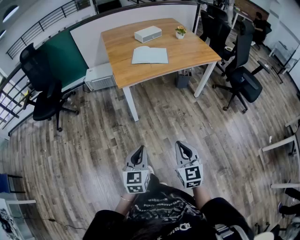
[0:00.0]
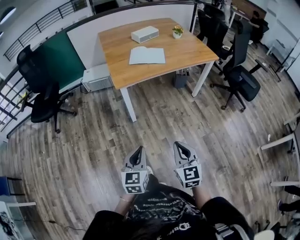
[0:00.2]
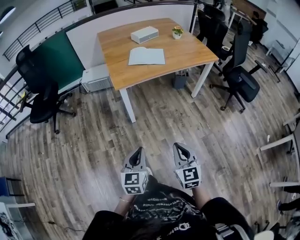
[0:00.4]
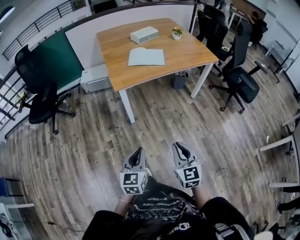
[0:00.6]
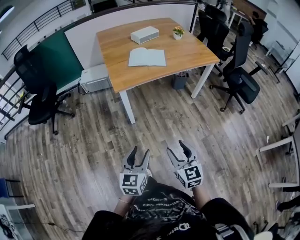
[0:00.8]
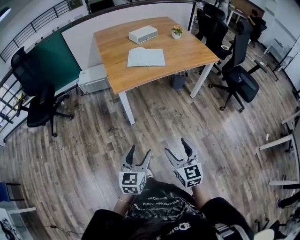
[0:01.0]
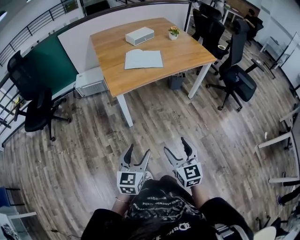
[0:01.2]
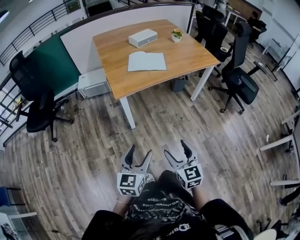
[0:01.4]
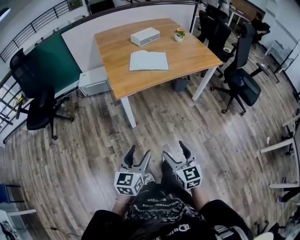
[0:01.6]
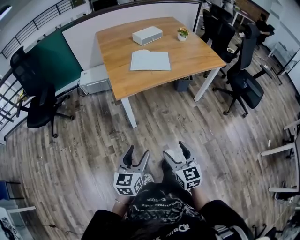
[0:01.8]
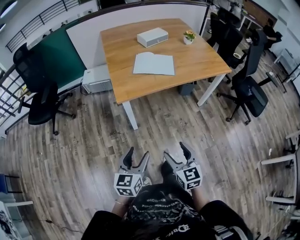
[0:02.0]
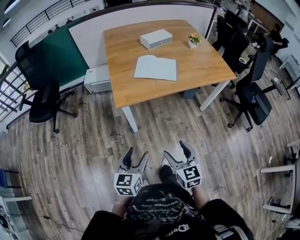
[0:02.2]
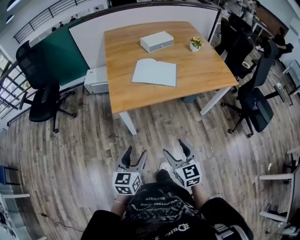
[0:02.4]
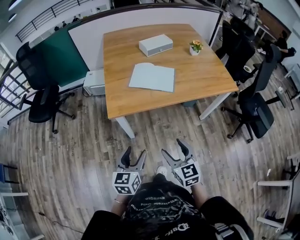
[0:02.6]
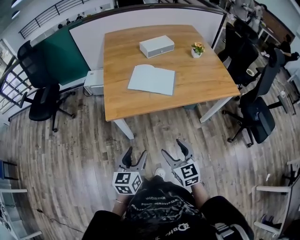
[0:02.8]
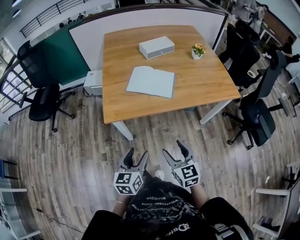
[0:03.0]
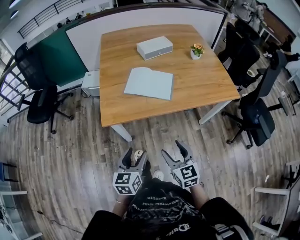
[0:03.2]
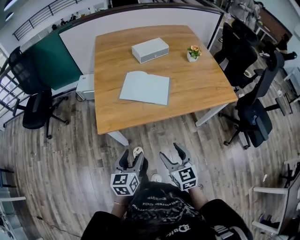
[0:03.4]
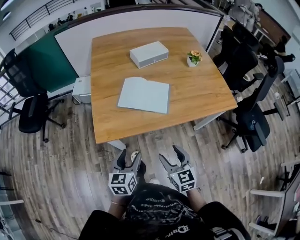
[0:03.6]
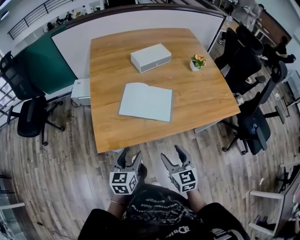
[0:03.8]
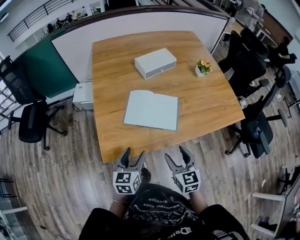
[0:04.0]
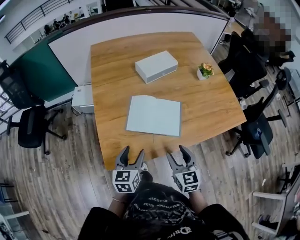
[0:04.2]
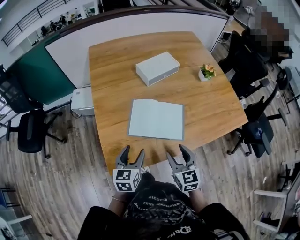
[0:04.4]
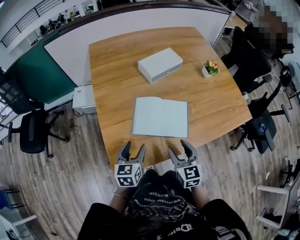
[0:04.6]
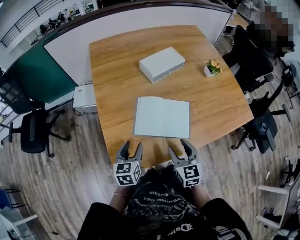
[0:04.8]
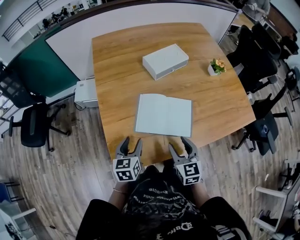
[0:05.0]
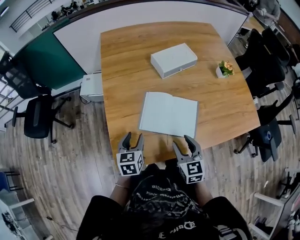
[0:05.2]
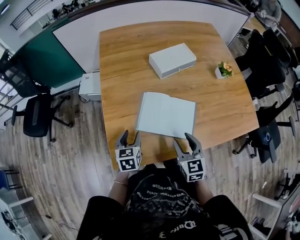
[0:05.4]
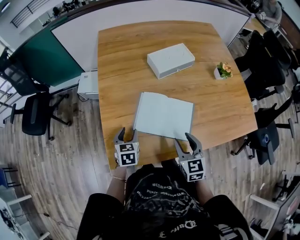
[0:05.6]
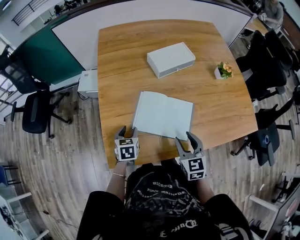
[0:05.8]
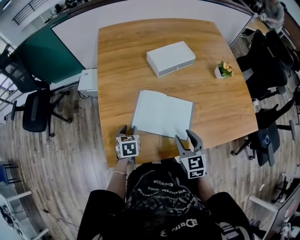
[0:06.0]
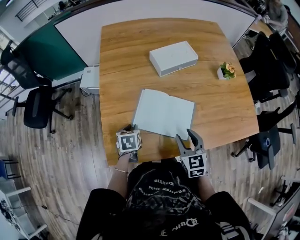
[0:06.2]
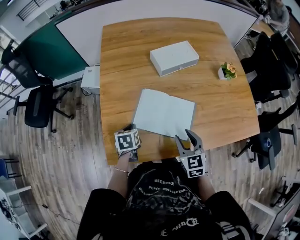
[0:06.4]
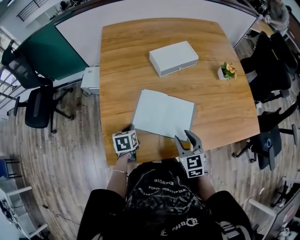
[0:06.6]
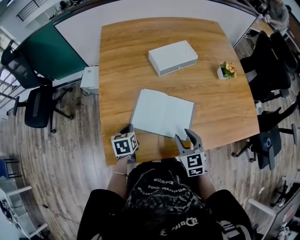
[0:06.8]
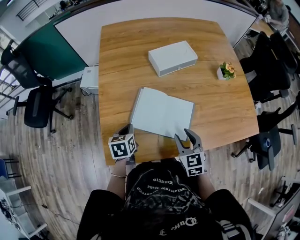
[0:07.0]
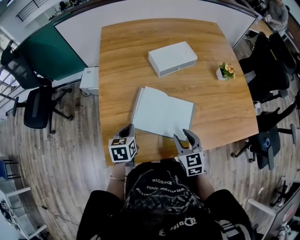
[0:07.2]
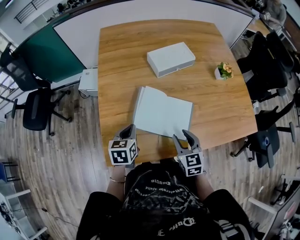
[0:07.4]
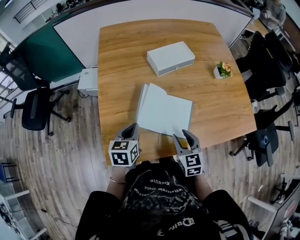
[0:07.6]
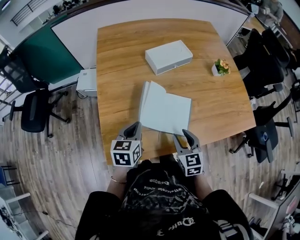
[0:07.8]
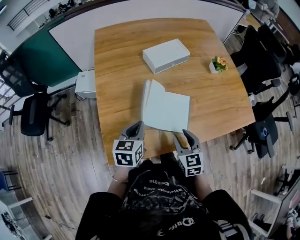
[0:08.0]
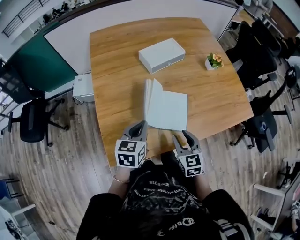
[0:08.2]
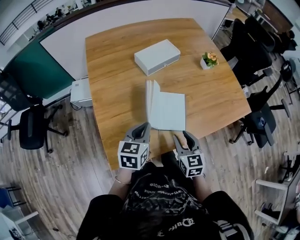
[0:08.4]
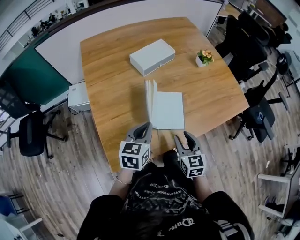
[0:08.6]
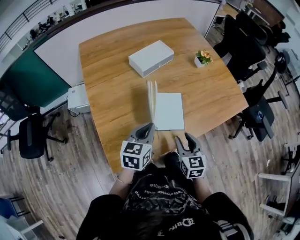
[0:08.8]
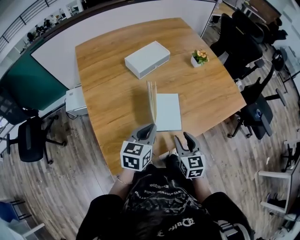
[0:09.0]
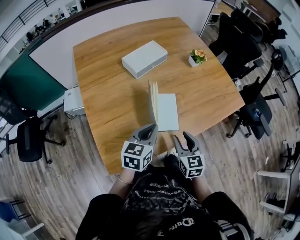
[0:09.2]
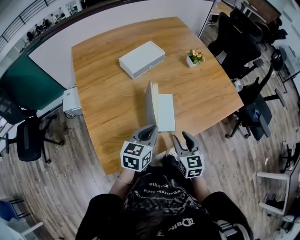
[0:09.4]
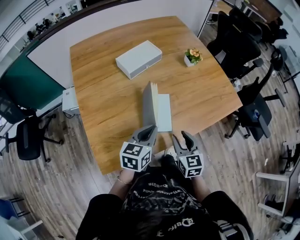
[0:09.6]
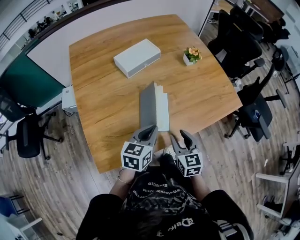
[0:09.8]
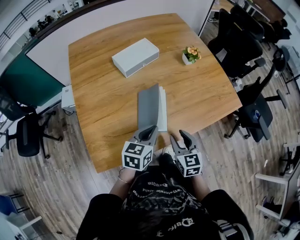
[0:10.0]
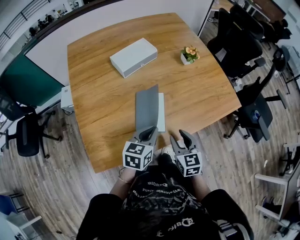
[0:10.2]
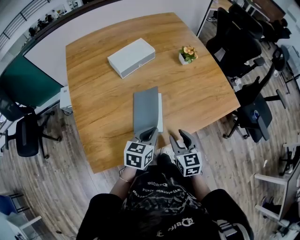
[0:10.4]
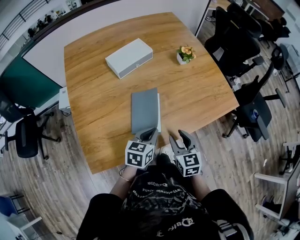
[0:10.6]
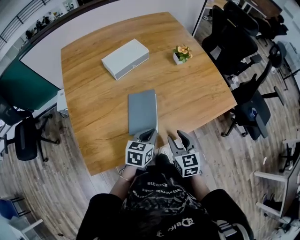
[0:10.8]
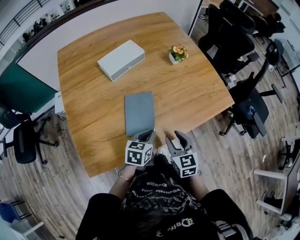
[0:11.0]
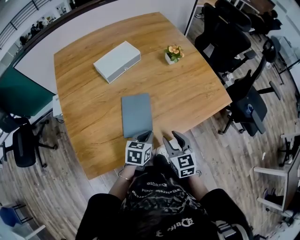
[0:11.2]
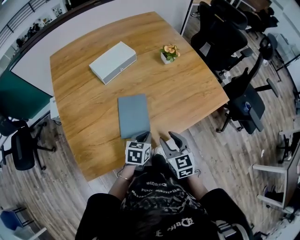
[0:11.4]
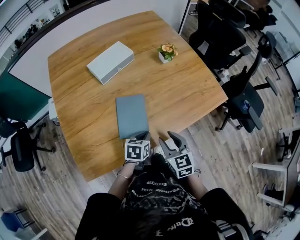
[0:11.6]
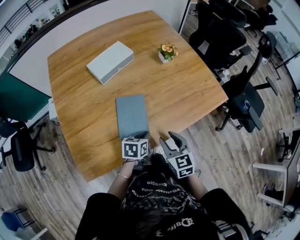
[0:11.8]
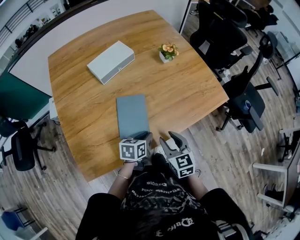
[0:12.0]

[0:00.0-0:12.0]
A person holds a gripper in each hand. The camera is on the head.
0:00.0 to 0:01.6: The left gripper moves forward, roughly 10 cm, and opens up. The right gripper moves forward and to the left, some 10 cm, and opens up.
0:01.6 to 0:03.0: The two grippers go some 30 cm forward and to the right.
0:03.0 to 0:04.4: Both grippers travel together forward, roughly 30 cm.
0:04.4 to 0:06.0: The right gripper is displaced forward by some 10 cm. Meanwhile the left gripper goes about 15 cm forward and downward, turns by about 30 degrees, and closes.
0:06.0 to 0:07.6: The left gripper is displaced upward by roughly 10 cm, and closes up.
0:07.6 to 0:09.0: The left gripper goes approximately 10 cm to the right, and rotates roughly 30 degrees, while the right gripper moves backward, about 5 cm, and changes its angle by roughly 20 degrees.
0:09.0 to 0:10.4: The left gripper moves to the right and downward, roughly 15 cm. Meanwhile the right gripper travels to the right by about 10 cm.
0:10.4 to 0:12.0: The left gripper heads downward, covering roughly 10 cm.

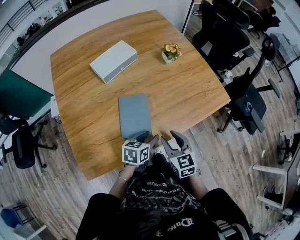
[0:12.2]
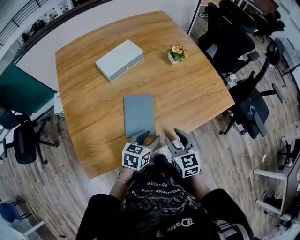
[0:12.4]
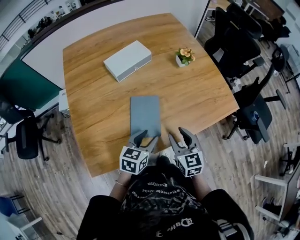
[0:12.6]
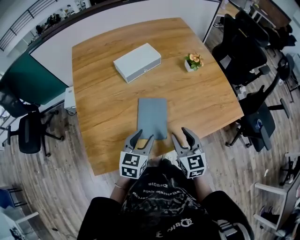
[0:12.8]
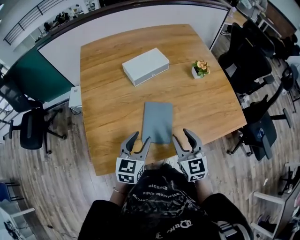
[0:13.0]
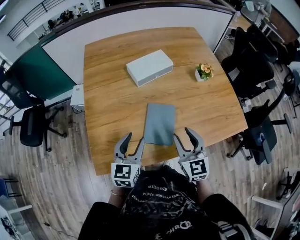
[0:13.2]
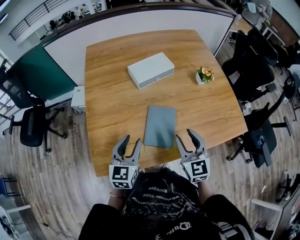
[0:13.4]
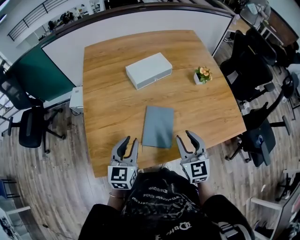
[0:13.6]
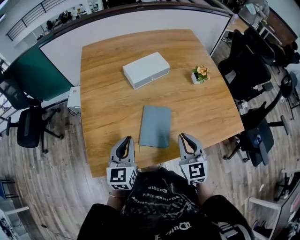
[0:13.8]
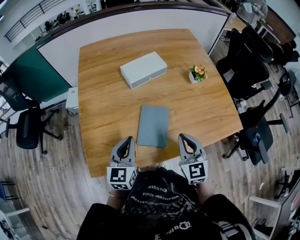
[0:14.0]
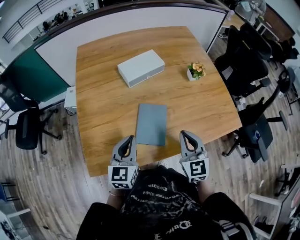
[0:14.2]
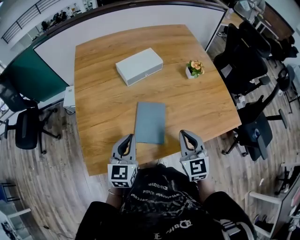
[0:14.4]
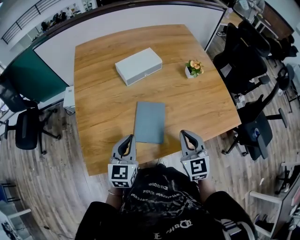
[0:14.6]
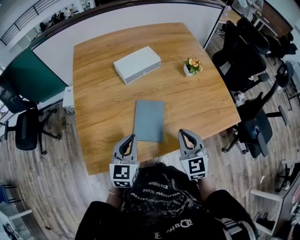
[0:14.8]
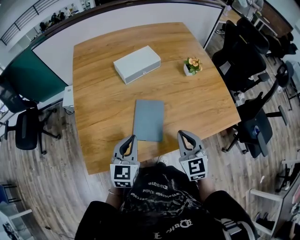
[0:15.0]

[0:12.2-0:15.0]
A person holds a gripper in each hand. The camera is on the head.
0:12.2 to 0:13.6: The right gripper goes approximately 10 cm upward, and turns by roughly 20 degrees, while the left gripper shifts by roughly 25 cm, and swivels about 50 degrees.
0:13.6 to 0:15.0: The left gripper is displaced to the right by about 5 cm, and closes, while the right gripper closes.

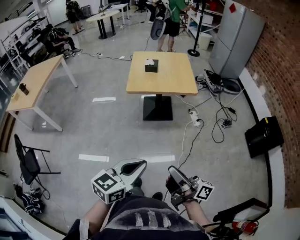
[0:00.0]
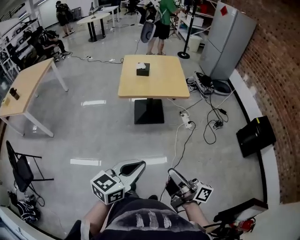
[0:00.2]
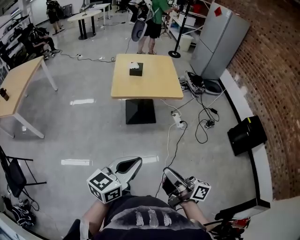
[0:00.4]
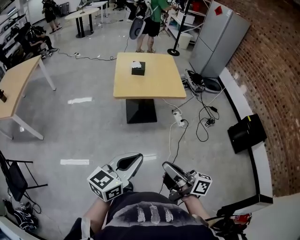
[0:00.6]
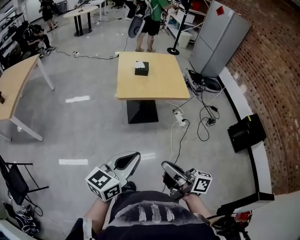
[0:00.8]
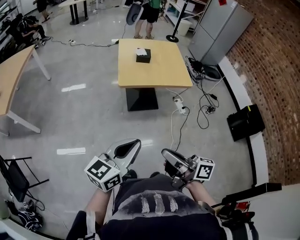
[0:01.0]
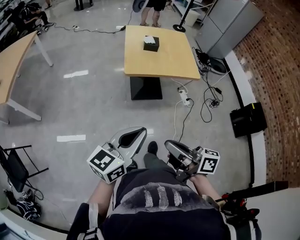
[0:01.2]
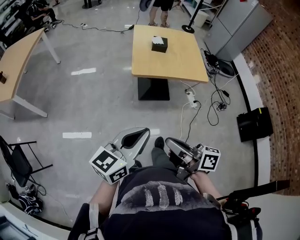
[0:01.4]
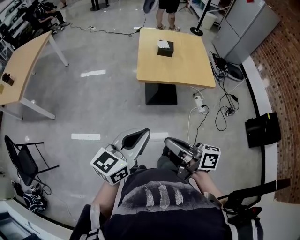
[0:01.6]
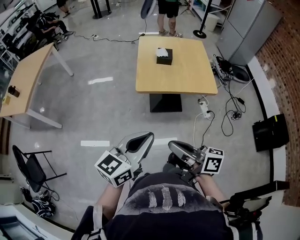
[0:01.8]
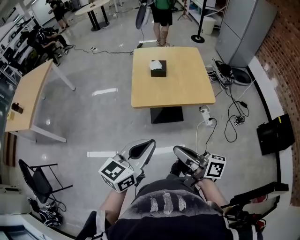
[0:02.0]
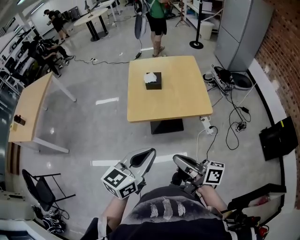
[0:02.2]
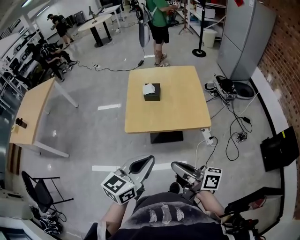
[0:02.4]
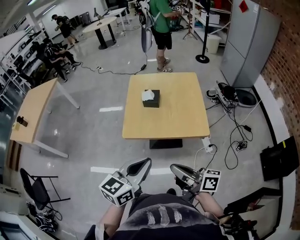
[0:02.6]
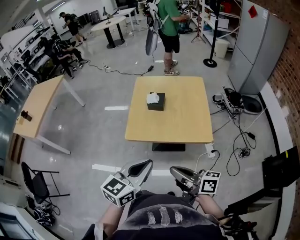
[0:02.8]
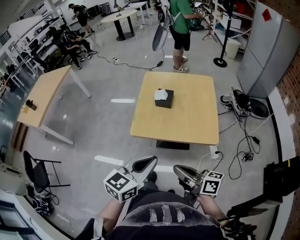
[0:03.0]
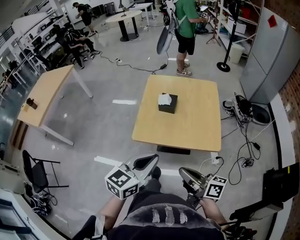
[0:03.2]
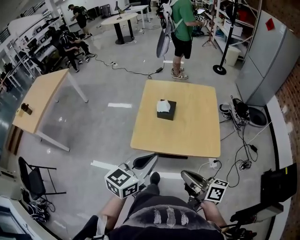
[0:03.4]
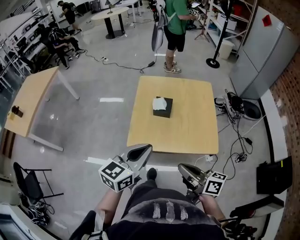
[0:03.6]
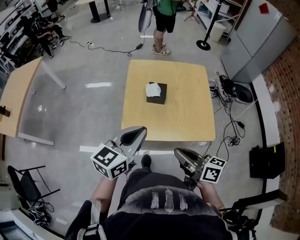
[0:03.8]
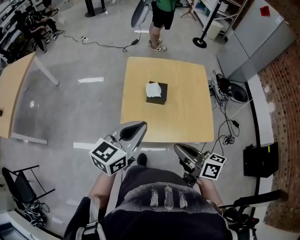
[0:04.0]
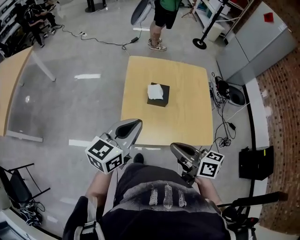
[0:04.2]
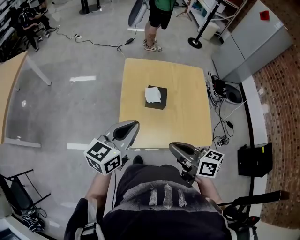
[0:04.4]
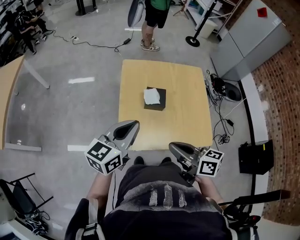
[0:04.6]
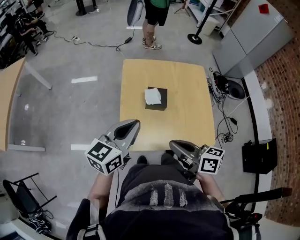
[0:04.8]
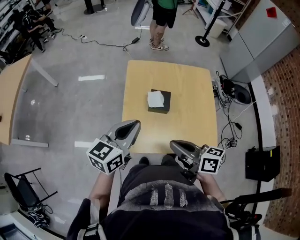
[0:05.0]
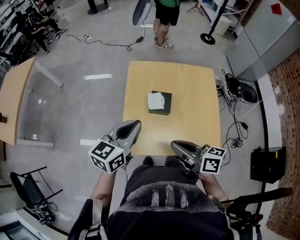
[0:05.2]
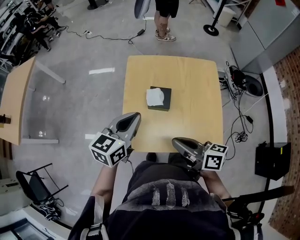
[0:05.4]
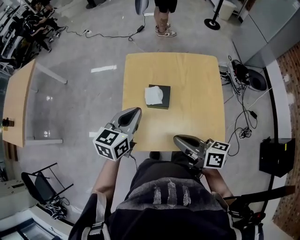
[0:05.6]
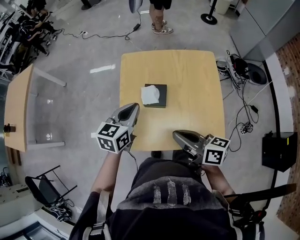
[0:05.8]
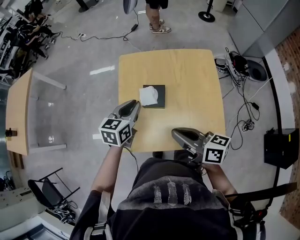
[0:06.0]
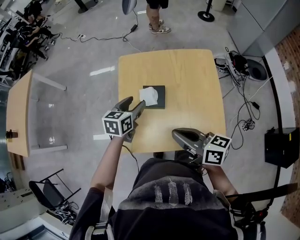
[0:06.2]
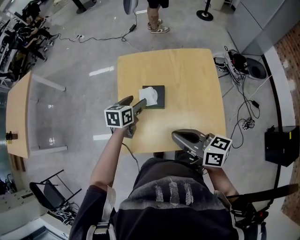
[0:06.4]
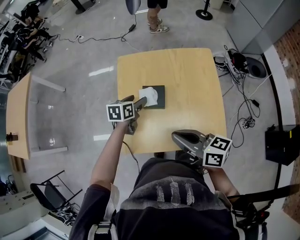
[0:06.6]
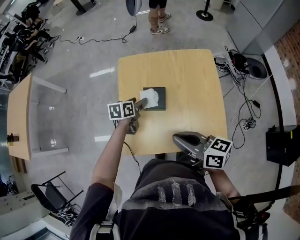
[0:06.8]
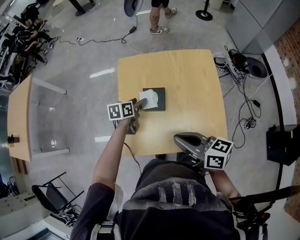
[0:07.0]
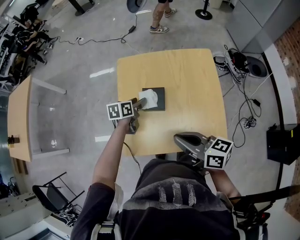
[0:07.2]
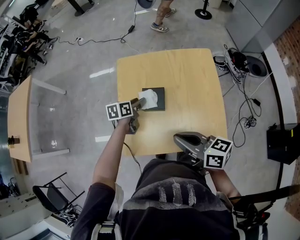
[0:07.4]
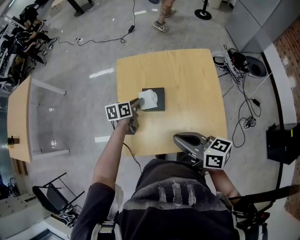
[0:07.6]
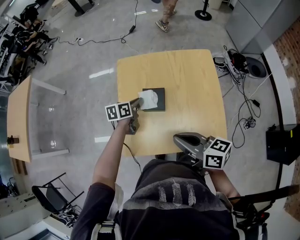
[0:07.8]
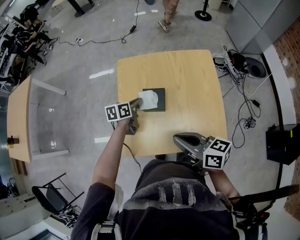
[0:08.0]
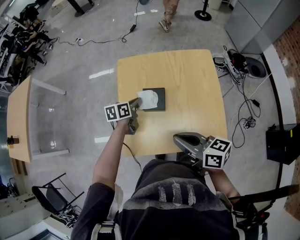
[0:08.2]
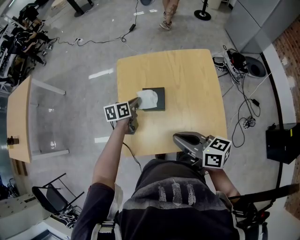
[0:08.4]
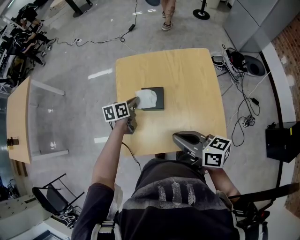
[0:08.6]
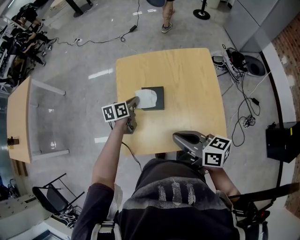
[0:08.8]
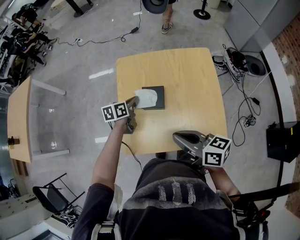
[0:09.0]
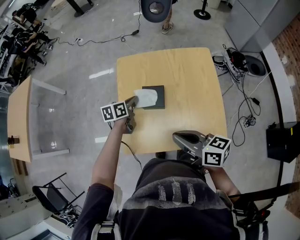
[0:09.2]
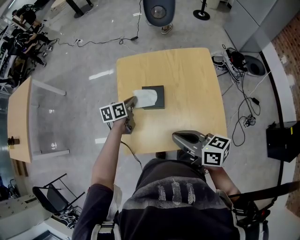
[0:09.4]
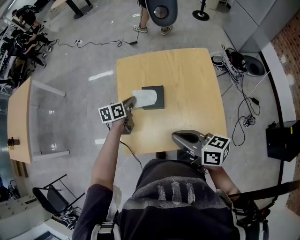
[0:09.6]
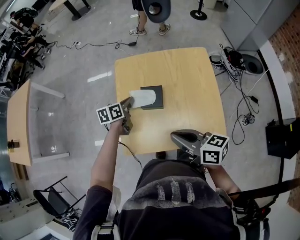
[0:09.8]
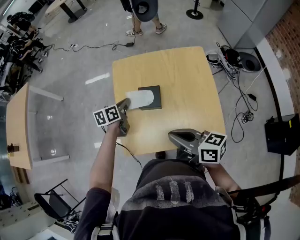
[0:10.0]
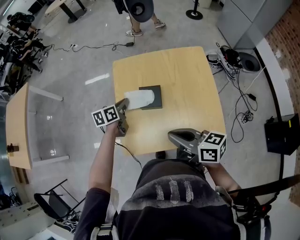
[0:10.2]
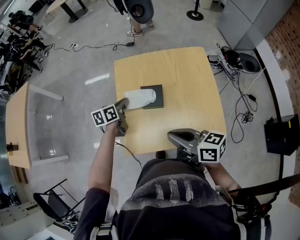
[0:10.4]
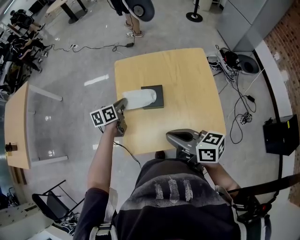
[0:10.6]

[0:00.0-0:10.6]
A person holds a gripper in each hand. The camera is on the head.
0:00.0 to 0:01.6: The two grippers go approximately 25 cm forward and to the left. The right gripper rotates some 20 degrees.
0:01.6 to 0:03.0: Both grippers move to the right and forward, about 30 cm.
0:03.0 to 0:04.6: The right gripper heads forward, covering about 20 cm, and changes its angle by some 20 degrees. The left gripper moves forward and to the left, approximately 30 cm.
0:04.6 to 0:06.0: The left gripper heads forward, downward and to the right, covering about 20 cm, and turns by about 20 degrees. Meanwhile the right gripper is displaced forward and to the right by about 10 cm.
0:06.0 to 0:07.6: The left gripper shifts about 15 cm downward and forward, rotates roughly 30 degrees, and opens, then closes once more.
0:07.6 to 0:09.0: Both grippers stay about where they are.
0:09.0 to 0:10.6: The grippers move only a little.
